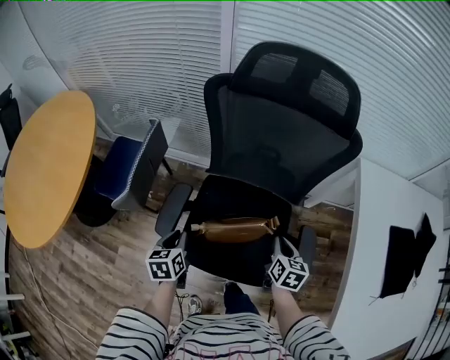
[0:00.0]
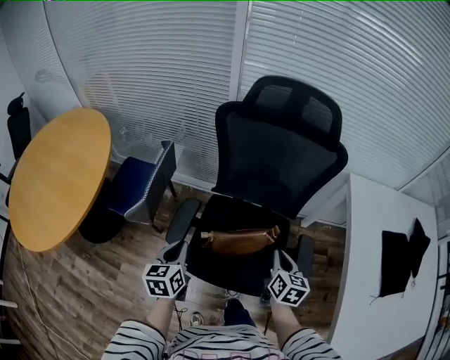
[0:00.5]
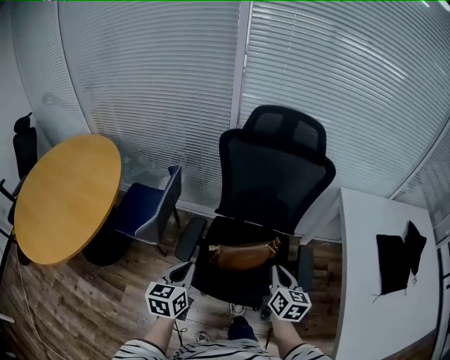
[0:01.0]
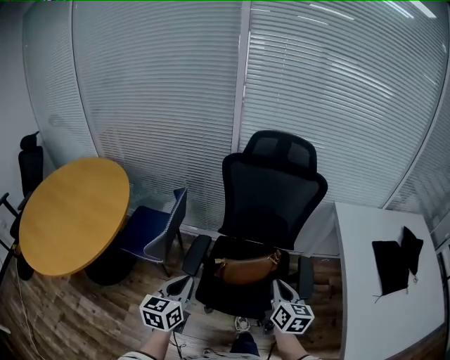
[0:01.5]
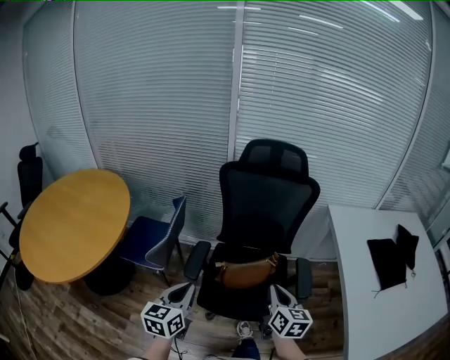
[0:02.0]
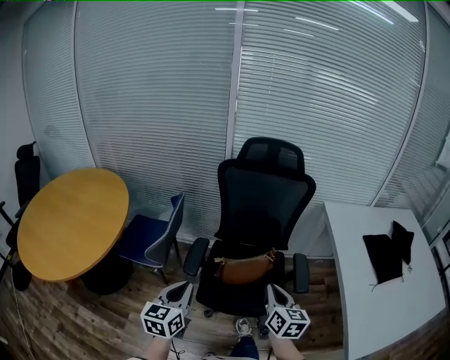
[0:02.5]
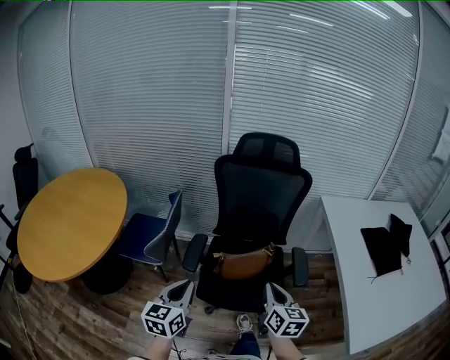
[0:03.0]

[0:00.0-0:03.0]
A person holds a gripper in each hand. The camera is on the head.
0:00.0 to 0:01.5: The right gripper travels upward, backward and to the left by roughly 25 cm, and rotates roughly 20 degrees; the left gripper is displaced upward and backward by some 25 cm, and rotates approximately 30 degrees.
0:01.5 to 0:03.0: Both grippers move backward, some 10 cm.

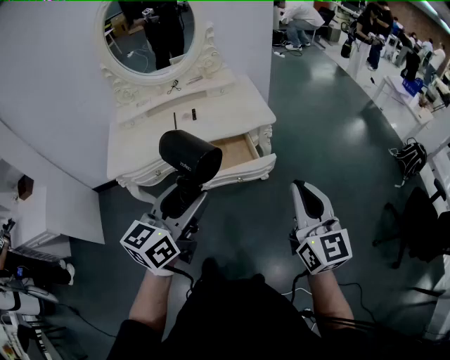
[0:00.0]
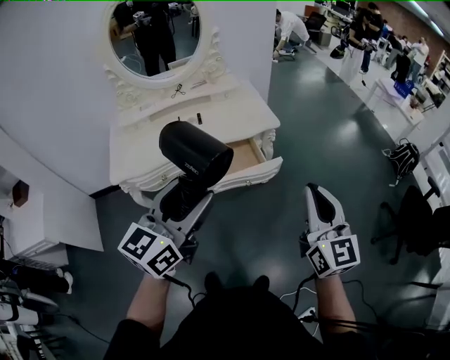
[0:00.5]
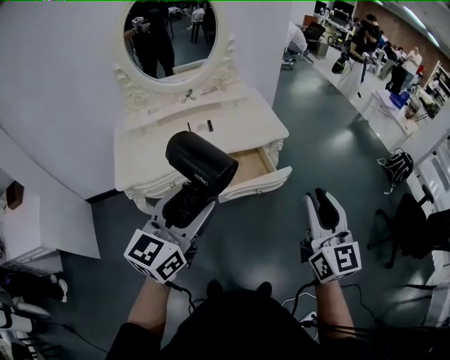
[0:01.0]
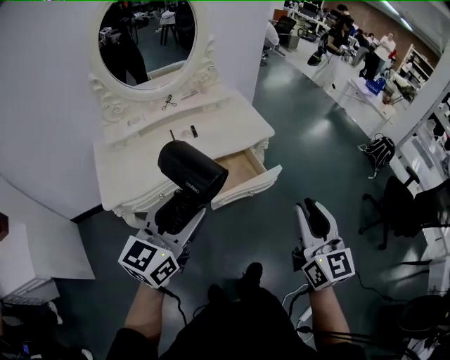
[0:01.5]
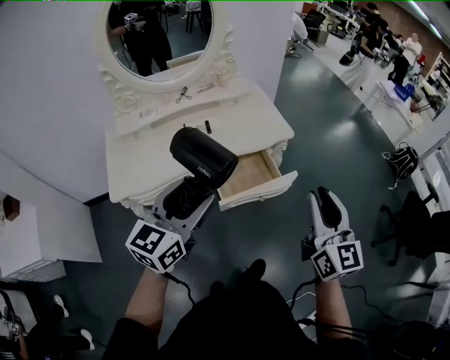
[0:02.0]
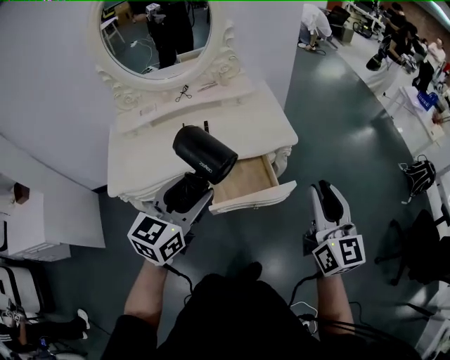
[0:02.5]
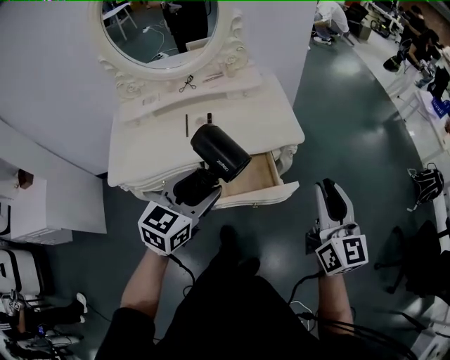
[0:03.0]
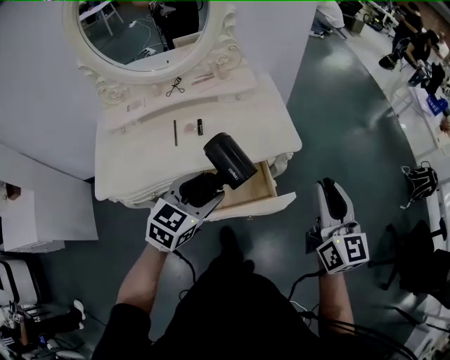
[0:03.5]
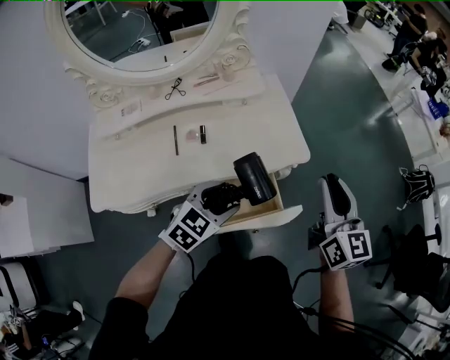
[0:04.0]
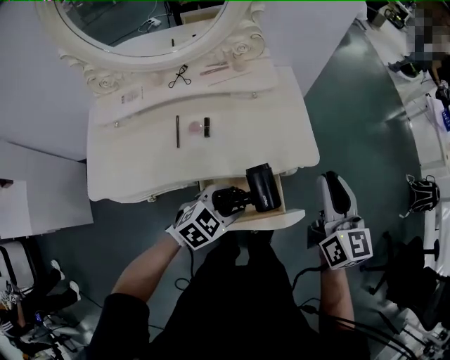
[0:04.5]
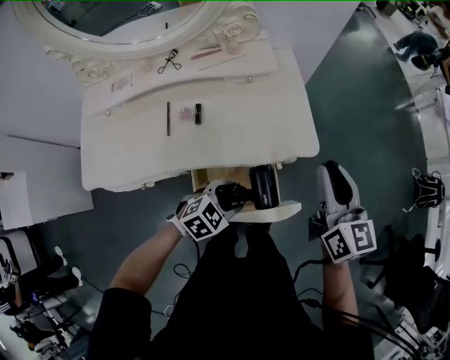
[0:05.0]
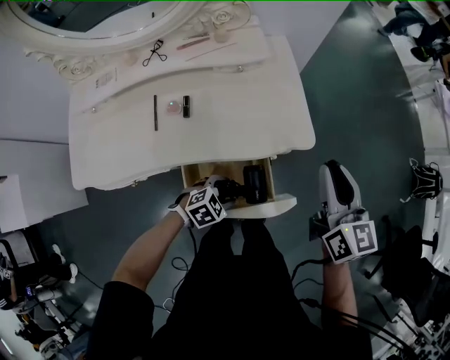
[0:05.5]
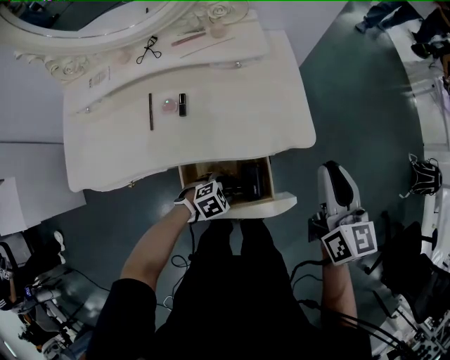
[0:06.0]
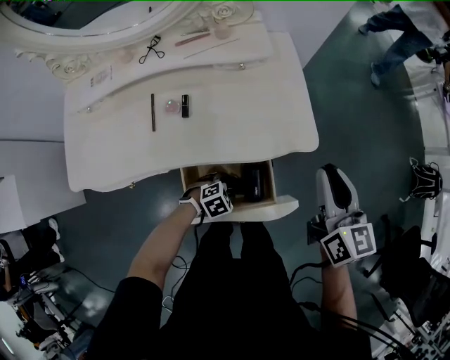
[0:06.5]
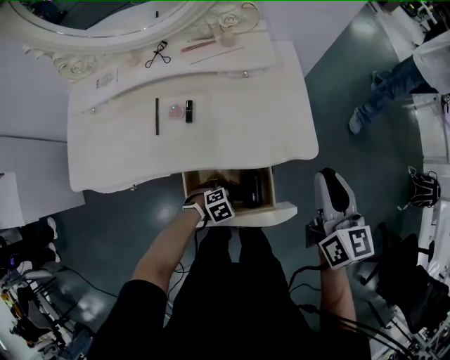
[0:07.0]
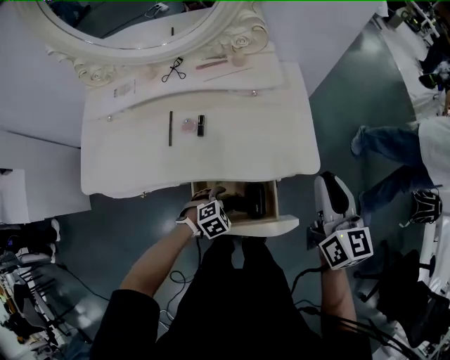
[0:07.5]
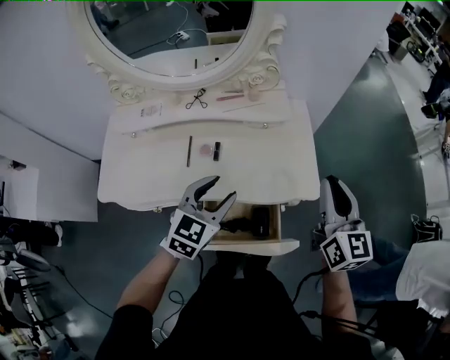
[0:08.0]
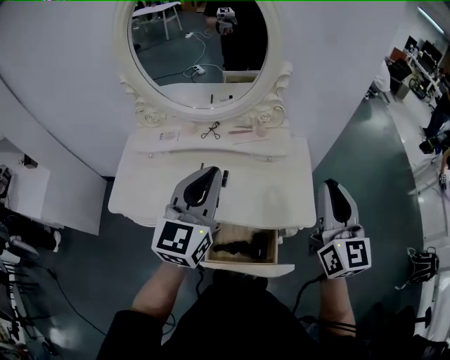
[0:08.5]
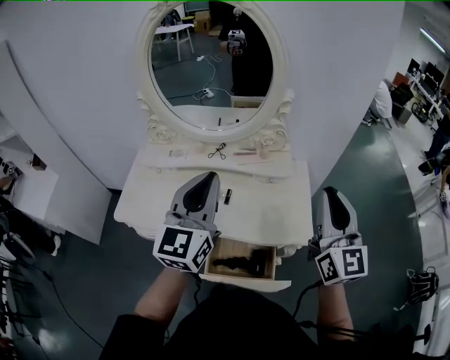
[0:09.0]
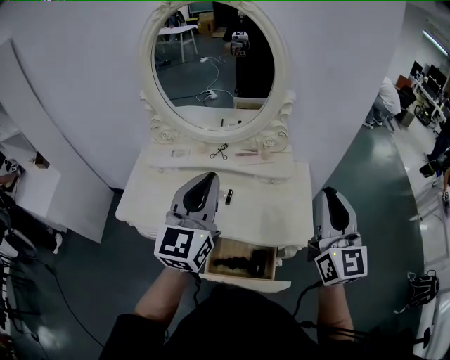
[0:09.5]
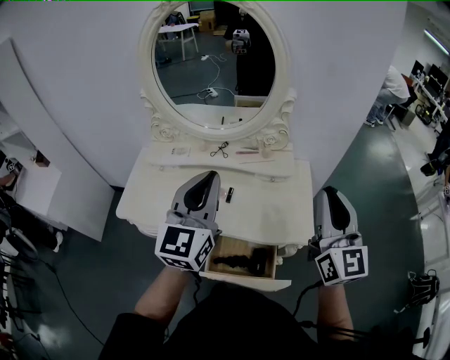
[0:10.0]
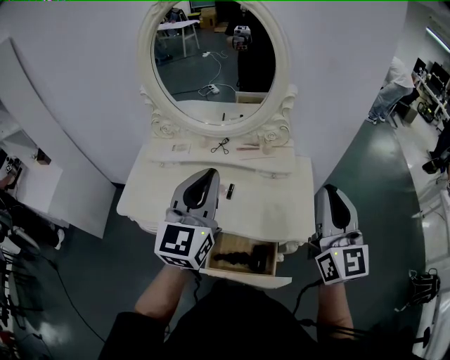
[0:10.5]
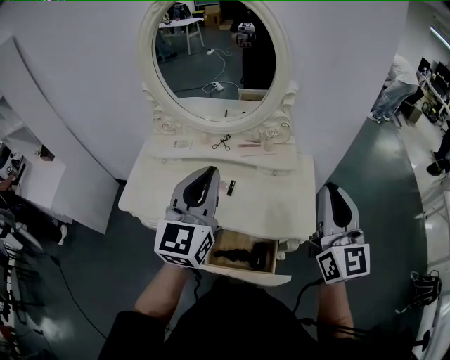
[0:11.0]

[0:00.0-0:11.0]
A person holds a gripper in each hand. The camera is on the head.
0:00.0 to 0:02.0: Both grippers move to the left and forward, about 15 cm. The right gripper opens its fingers.
0:02.0 to 0:03.5: The right gripper shifts approximately 20 cm forward, while the left gripper shifts approximately 25 cm forward, downward and to the right, and rotates roughly 20 degrees.
0:03.5 to 0:05.5: The right gripper shifts roughly 20 cm forward and downward, while the left gripper is displaced downward by some 30 cm, and swivels some 40 degrees.
0:05.5 to 0:07.5: The left gripper travels downward and back again, approximately 10 cm each way.
0:07.5 to 0:09.0: The right gripper moves upward, some 25 cm, and rotates roughly 30 degrees, while the left gripper heads upward, covering roughly 60 cm, tilts its fingers about 70 degrees upward, and closes up.
0:09.0 to 0:11.0: The grippers make only small movements.

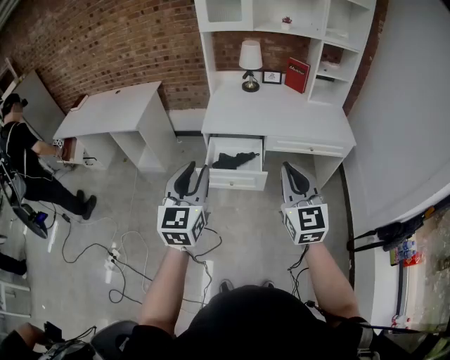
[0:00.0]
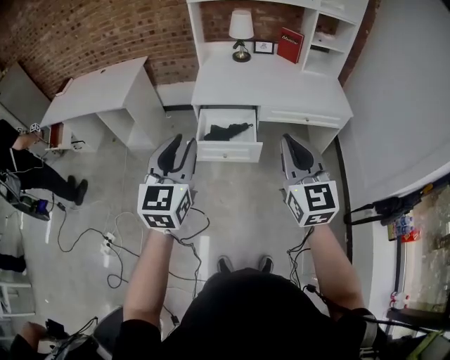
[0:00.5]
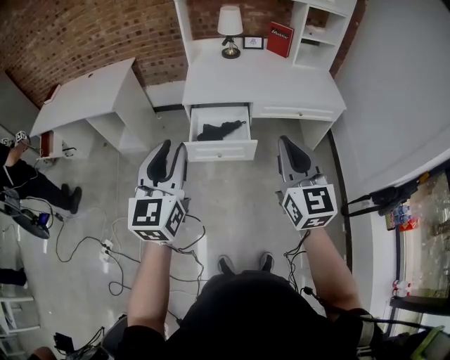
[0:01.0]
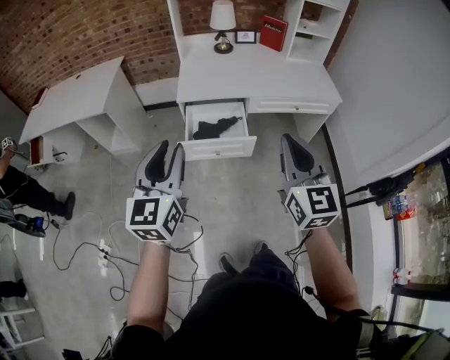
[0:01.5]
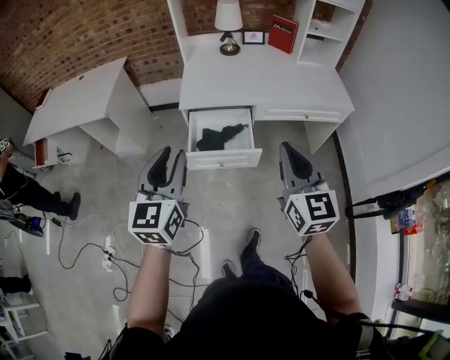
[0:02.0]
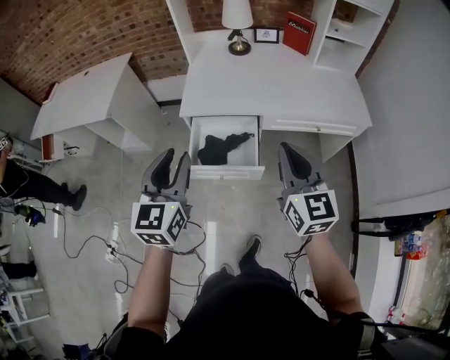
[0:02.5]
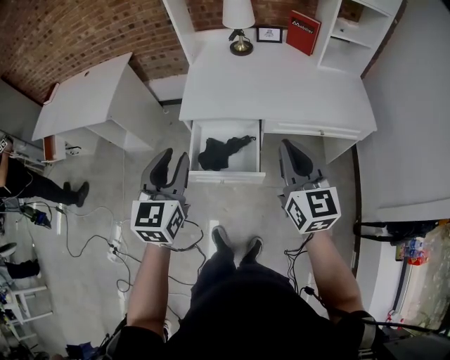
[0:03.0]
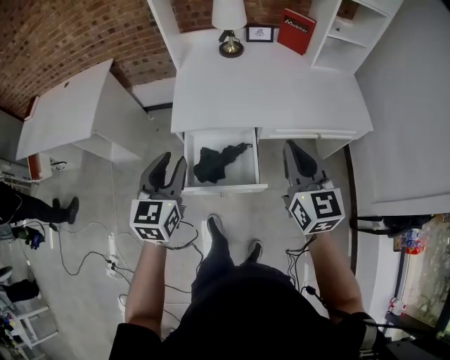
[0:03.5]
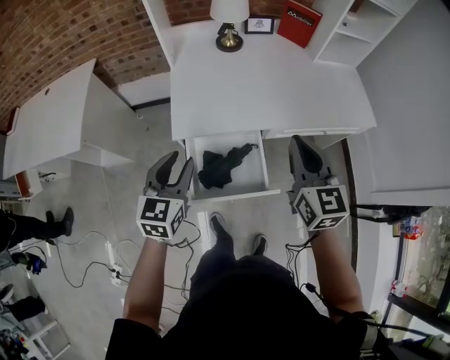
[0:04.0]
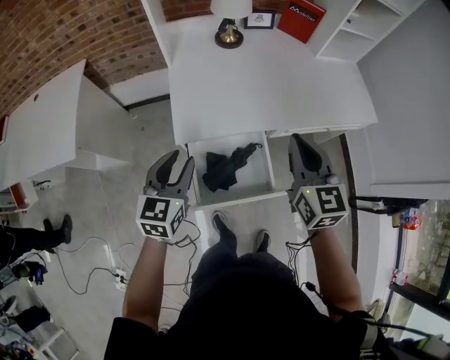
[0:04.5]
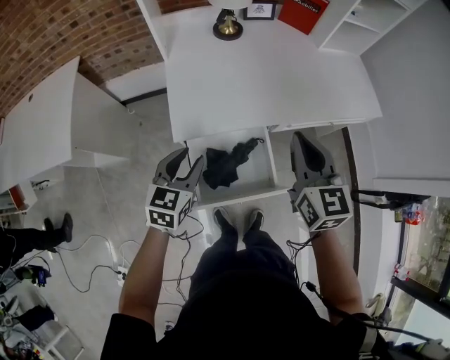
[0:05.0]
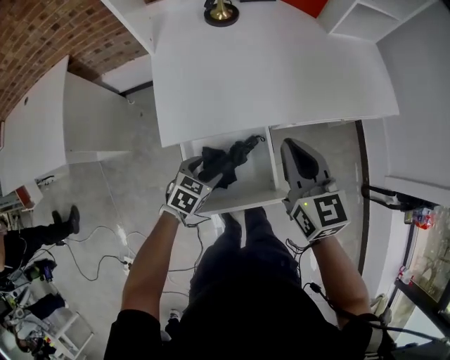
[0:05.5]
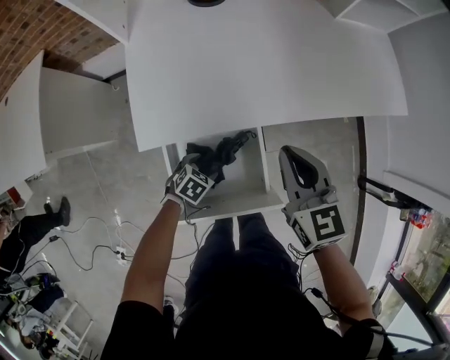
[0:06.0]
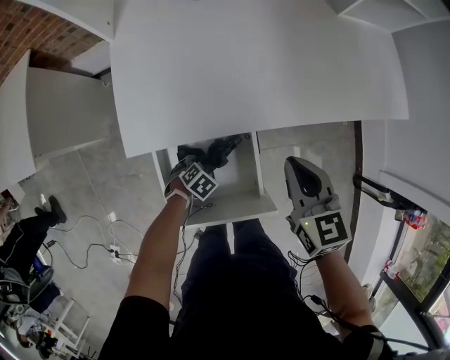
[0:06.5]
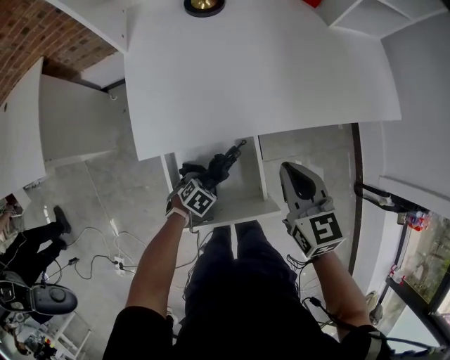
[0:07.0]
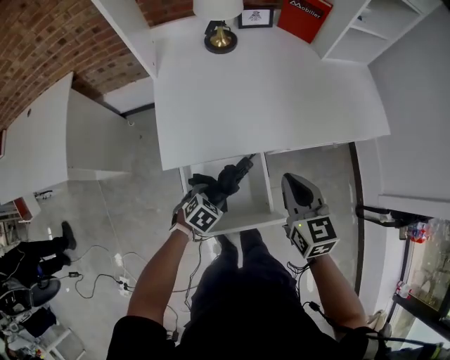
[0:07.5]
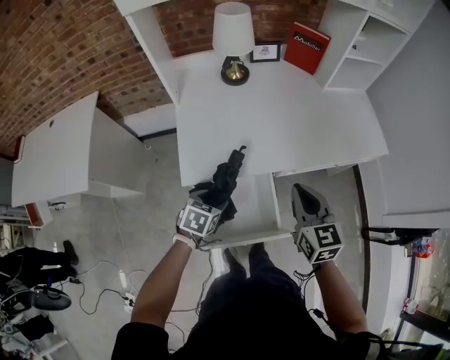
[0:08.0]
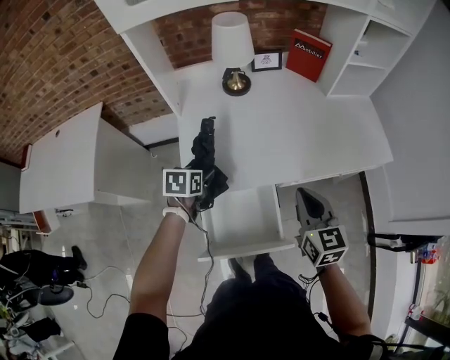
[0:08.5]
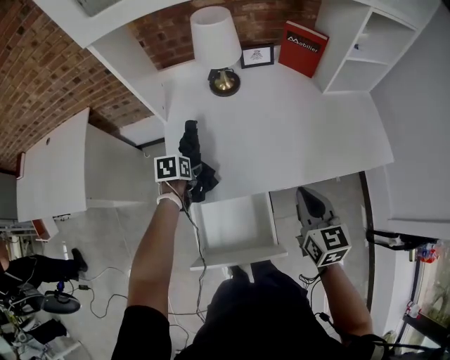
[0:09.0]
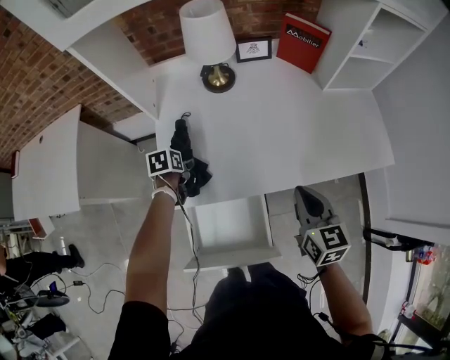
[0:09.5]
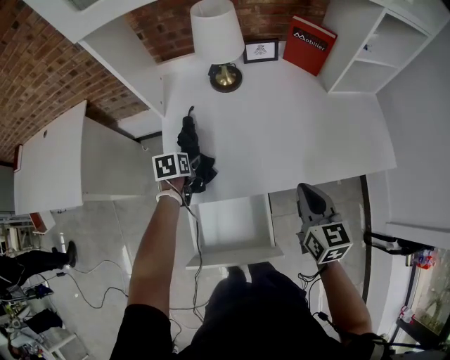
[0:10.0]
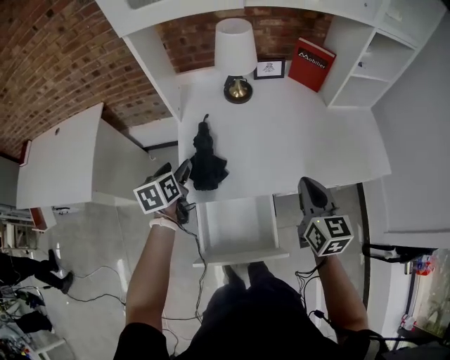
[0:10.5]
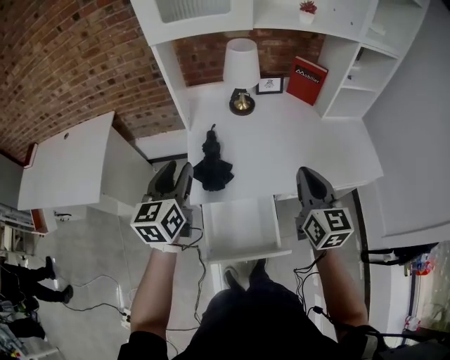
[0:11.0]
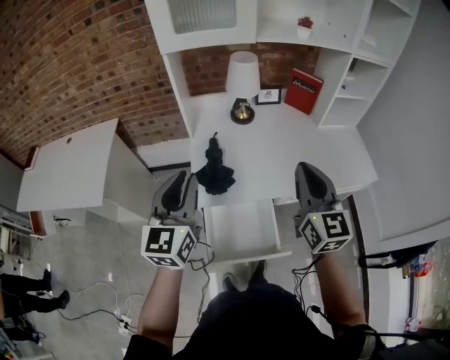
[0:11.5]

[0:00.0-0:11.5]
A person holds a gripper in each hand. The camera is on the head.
0:00.0 to 0:02.0: Both grippers move forward and downward, roughly 10 cm.
0:02.0 to 0:04.0: The left gripper goes some 35 cm forward and downward, and turns by about 20 degrees. Meanwhile the right gripper travels forward by some 30 cm.
0:04.0 to 0:06.0: The left gripper is displaced downward by some 40 cm, points its fingers some 50 degrees further downward, and opens up, while the right gripper moves downward and forward, about 20 cm.
0:06.0 to 0:07.5: The right gripper changes place by some 5 cm; the left gripper travels upward by some 10 cm.
0:07.5 to 0:09.5: The right gripper shifts about 10 cm forward and to the right. The left gripper goes about 30 cm forward and to the left, and twists roughly 50 degrees counterclockwise, seen from behind.
0:09.5 to 0:11.5: The left gripper moves upward and backward, some 50 cm, tips its fingers upward by about 70 degrees, and closes its fingers. The right gripper goes some 25 cm upward and to the left, and swivels about 30 degrees.

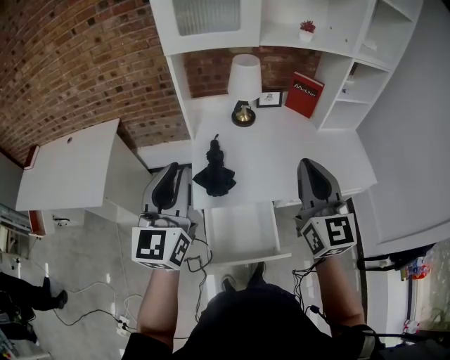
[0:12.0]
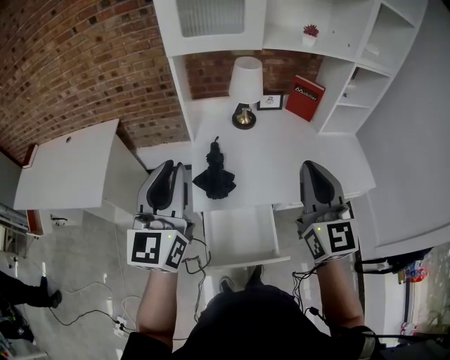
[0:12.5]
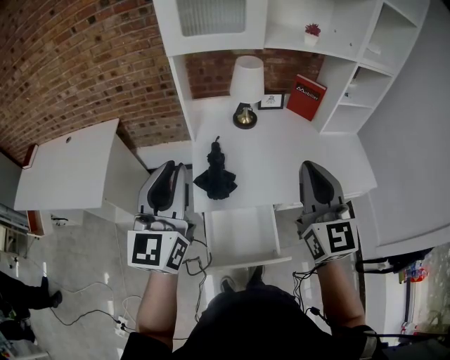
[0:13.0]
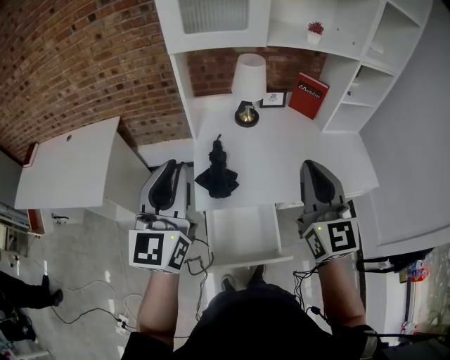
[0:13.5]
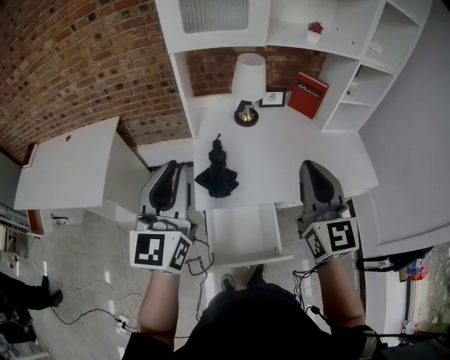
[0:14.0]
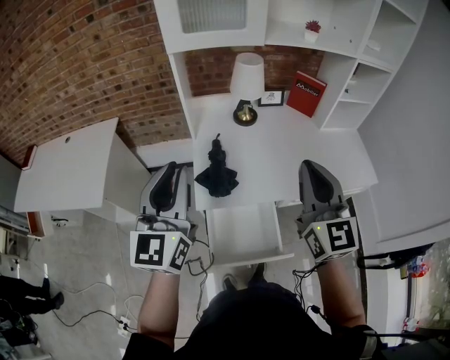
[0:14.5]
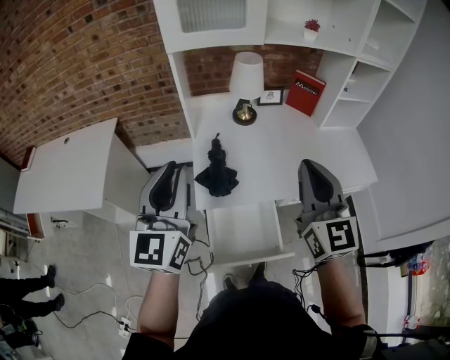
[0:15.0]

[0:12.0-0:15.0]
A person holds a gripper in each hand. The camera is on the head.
0:12.0 to 0:15.0: There are only small adjustments of the grippers.
